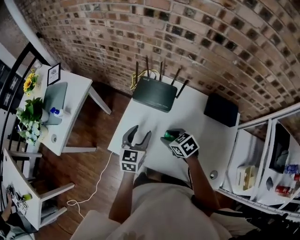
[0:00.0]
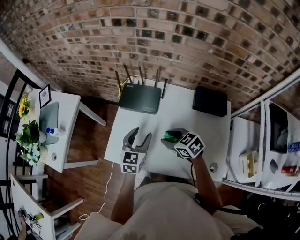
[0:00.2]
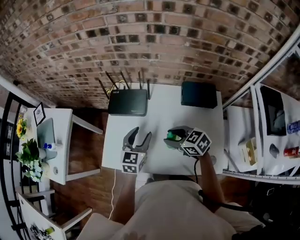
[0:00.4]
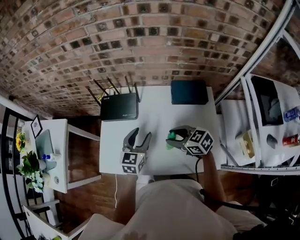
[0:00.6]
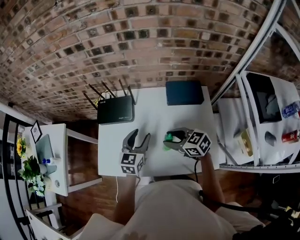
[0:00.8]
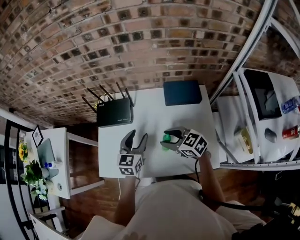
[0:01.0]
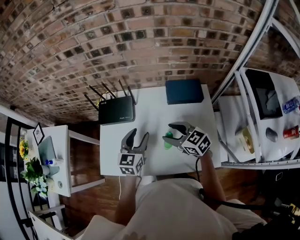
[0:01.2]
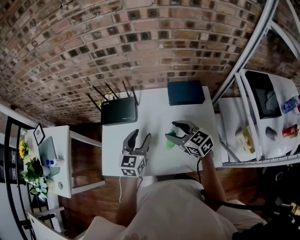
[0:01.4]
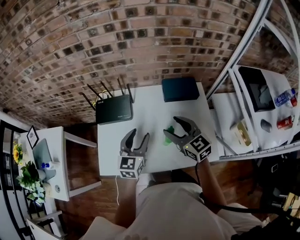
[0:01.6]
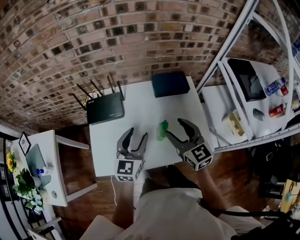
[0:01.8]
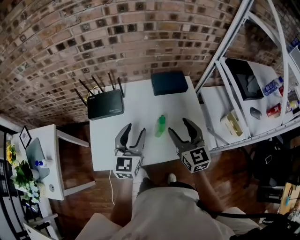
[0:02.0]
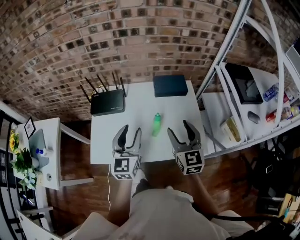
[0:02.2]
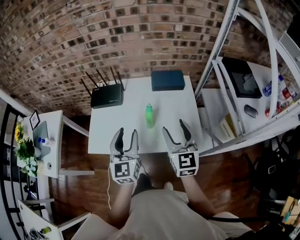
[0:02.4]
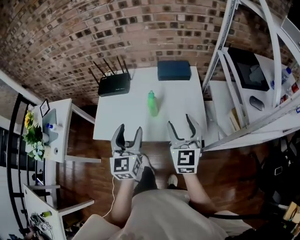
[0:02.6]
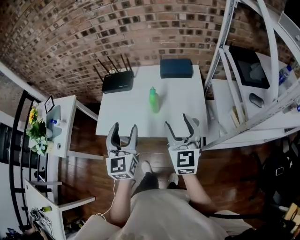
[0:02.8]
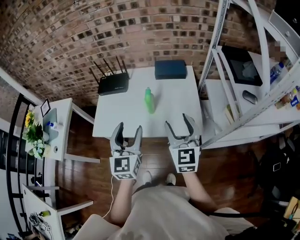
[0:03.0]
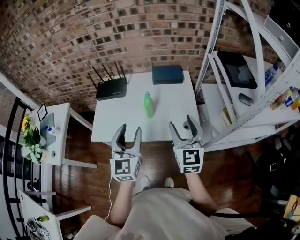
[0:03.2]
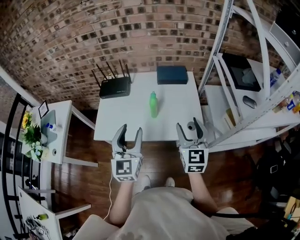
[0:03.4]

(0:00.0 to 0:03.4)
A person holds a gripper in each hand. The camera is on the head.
0:00.0 - 0:01.6: The left gripper ends up some 20 cm from where it was, and rotates about 30 degrees; the right gripper ends up some 25 cm from where it was, and tilts its fingers about 40 degrees upward.
0:01.6 - 0:03.4: The right gripper is displaced backward and to the right by roughly 30 cm, and turns by roughly 30 degrees. The left gripper is displaced backward and upward by some 25 cm, and swivels some 20 degrees.

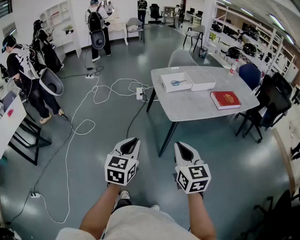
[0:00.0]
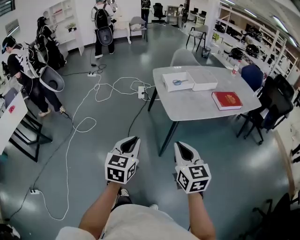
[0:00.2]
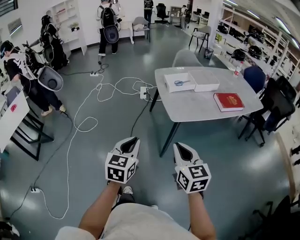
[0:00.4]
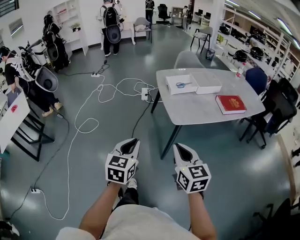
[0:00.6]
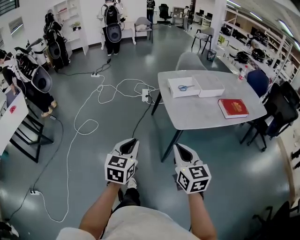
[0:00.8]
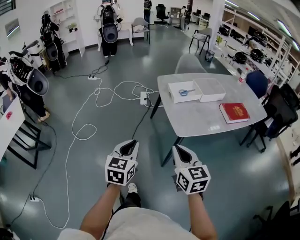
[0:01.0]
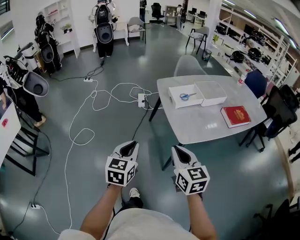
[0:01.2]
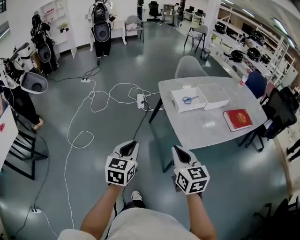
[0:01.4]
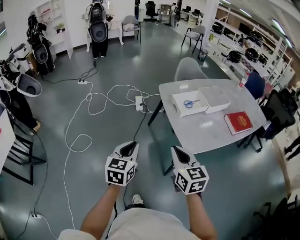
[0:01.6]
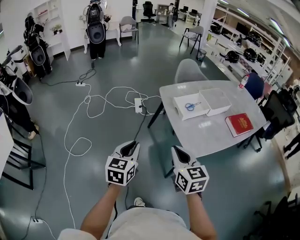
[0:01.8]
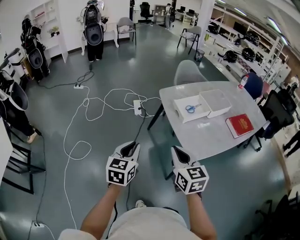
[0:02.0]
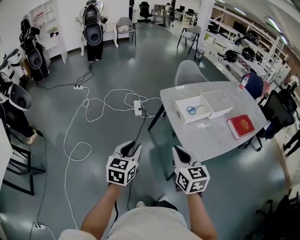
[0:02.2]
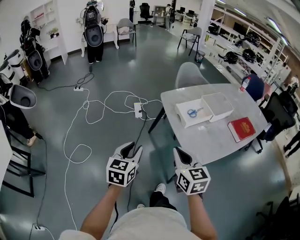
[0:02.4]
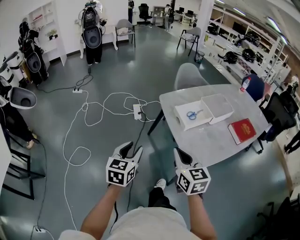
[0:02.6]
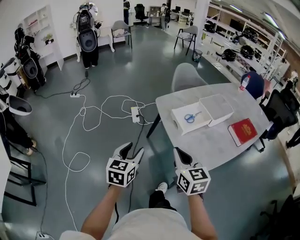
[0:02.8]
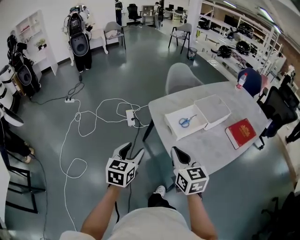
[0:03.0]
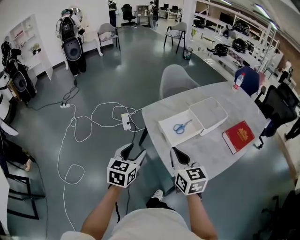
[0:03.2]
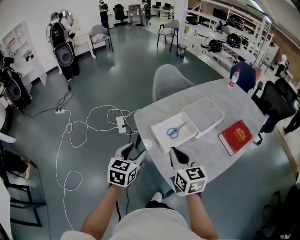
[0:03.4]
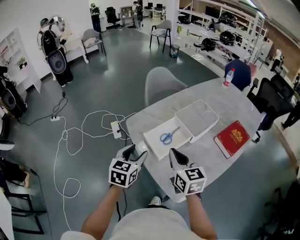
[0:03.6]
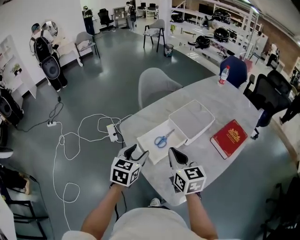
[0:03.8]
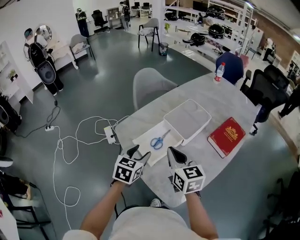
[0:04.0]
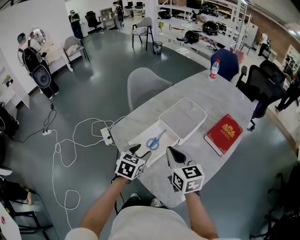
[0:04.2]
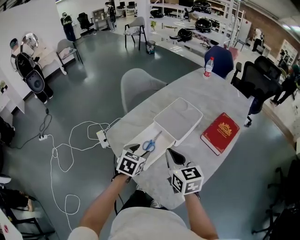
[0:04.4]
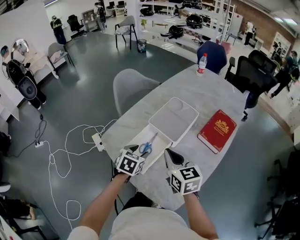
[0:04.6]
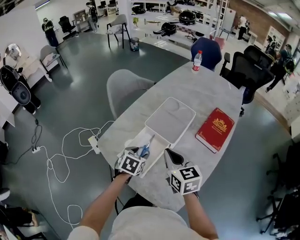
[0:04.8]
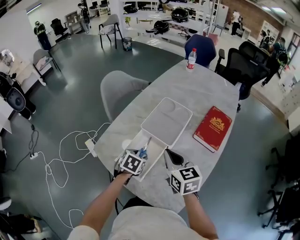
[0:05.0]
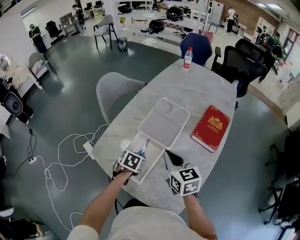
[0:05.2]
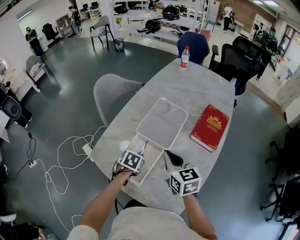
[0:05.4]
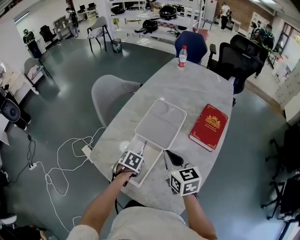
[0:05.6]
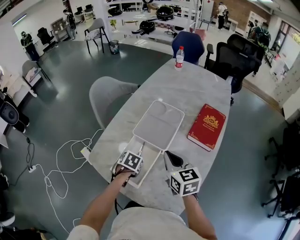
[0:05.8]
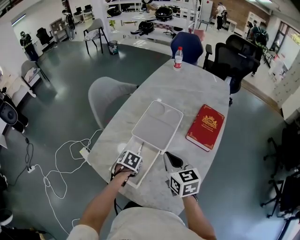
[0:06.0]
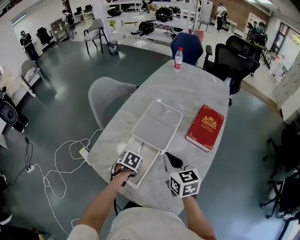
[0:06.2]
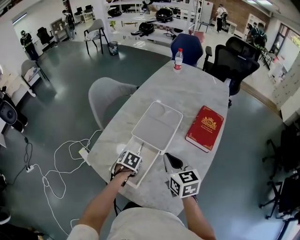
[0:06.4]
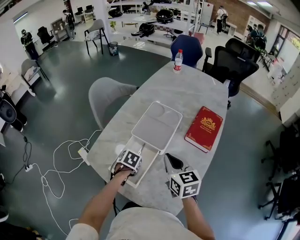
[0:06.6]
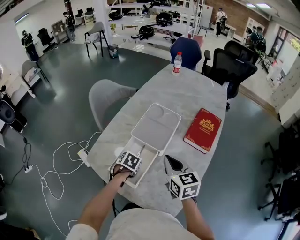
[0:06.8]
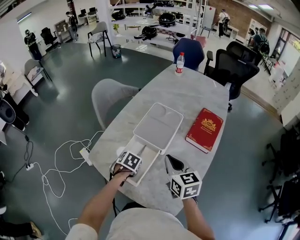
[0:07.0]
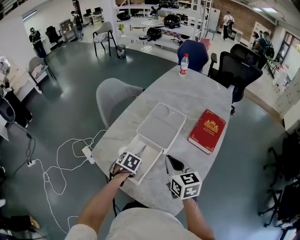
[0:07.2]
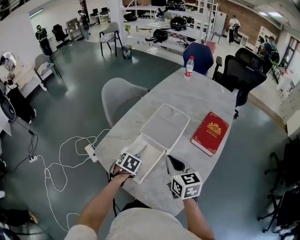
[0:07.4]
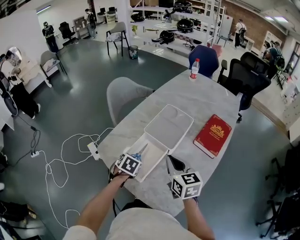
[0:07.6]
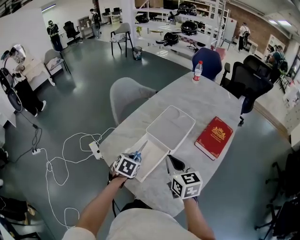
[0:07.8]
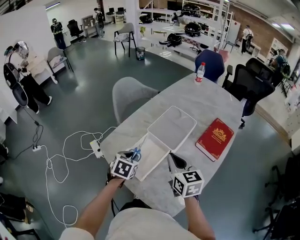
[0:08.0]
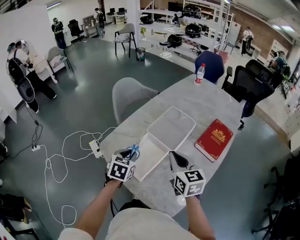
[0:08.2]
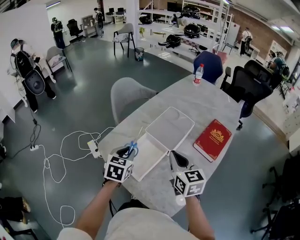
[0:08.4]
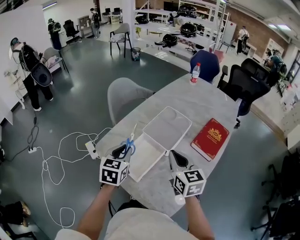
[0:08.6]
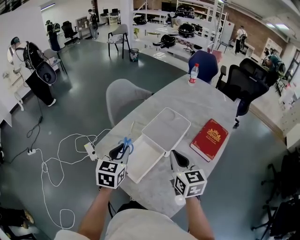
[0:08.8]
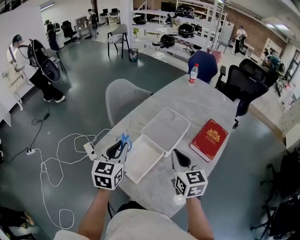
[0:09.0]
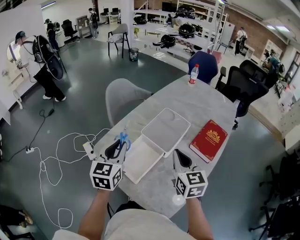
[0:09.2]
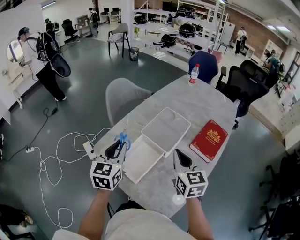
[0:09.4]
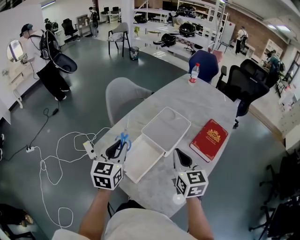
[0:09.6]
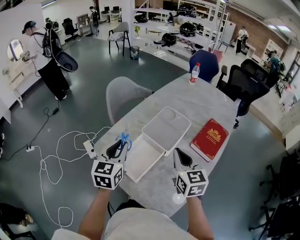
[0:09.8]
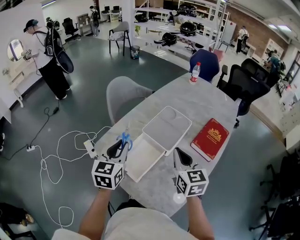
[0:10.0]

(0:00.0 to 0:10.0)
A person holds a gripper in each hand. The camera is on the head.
0:00.0 - 0:01.4: Both grippers move forward and to the left, some 25 cm.
0:01.4 - 0:02.8: Both grippers travel together forward, about 20 cm. The left gripper opens up.
0:02.8 - 0:04.2: The grippers both shift forward and to the right by approximately 35 cm. The left gripper swivels roughly 30 degrees.
0:04.2 - 0:05.8: The left gripper heads downward and forward, covering roughly 15 cm, and tips its fingers downward by about 30 degrees; the right gripper shifts roughly 10 cm forward and to the right.
0:05.8 - 0:07.2: There are only small adjustments of the grippers.
0:07.2 - 0:08.6: The left gripper goes approximately 15 cm upward, and points its fingers roughly 40 degrees further upward.
0:08.6 - 0:10.0: The grippers move only a little.

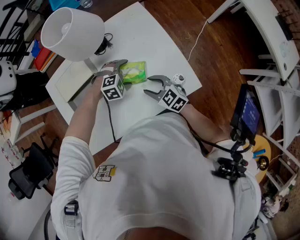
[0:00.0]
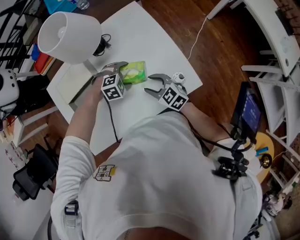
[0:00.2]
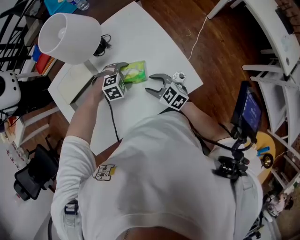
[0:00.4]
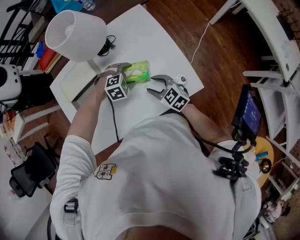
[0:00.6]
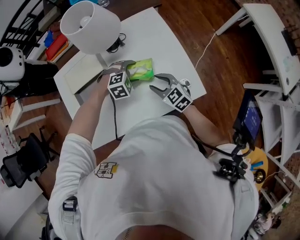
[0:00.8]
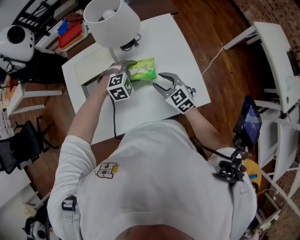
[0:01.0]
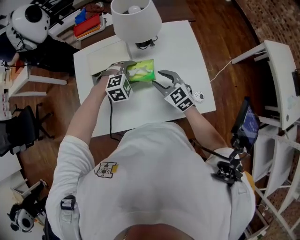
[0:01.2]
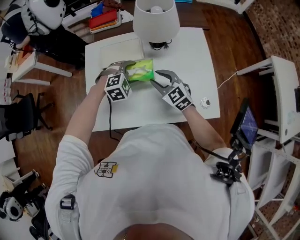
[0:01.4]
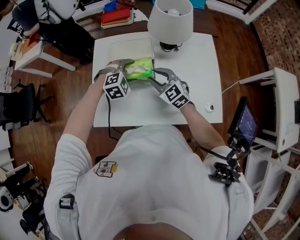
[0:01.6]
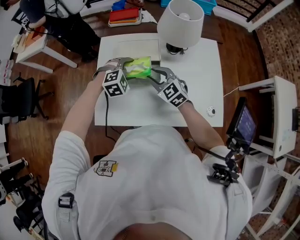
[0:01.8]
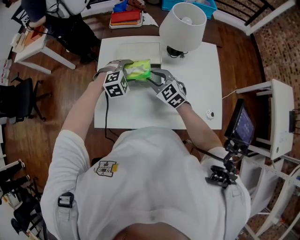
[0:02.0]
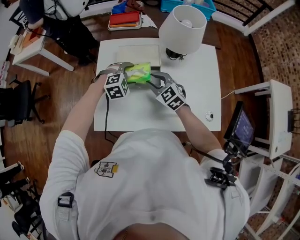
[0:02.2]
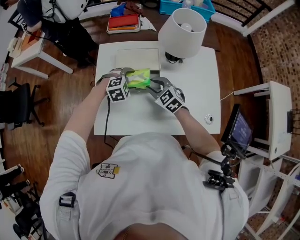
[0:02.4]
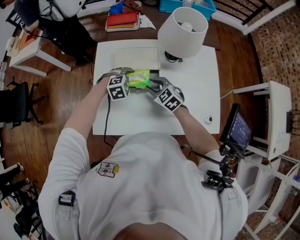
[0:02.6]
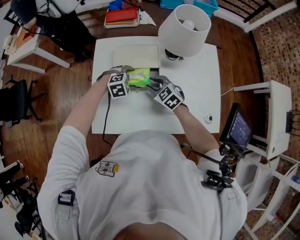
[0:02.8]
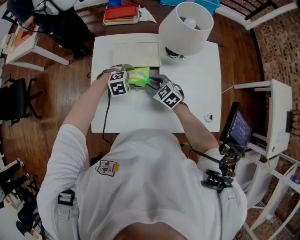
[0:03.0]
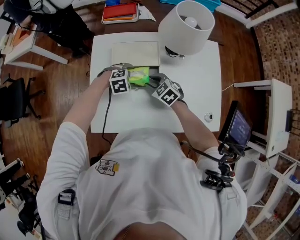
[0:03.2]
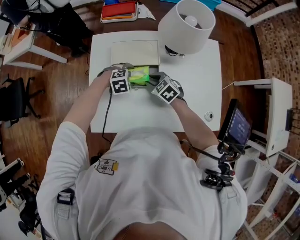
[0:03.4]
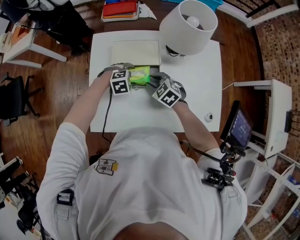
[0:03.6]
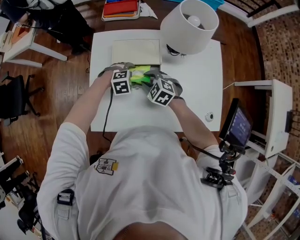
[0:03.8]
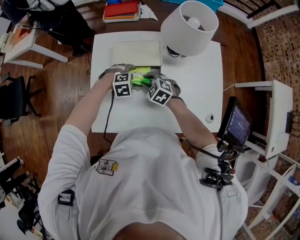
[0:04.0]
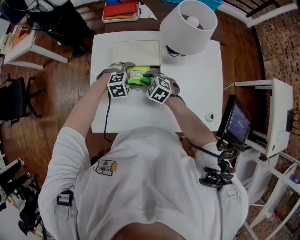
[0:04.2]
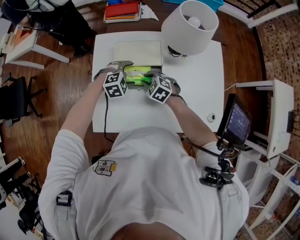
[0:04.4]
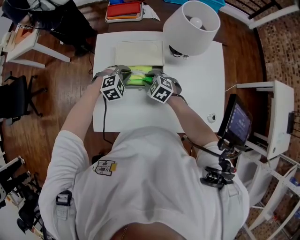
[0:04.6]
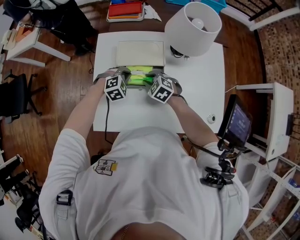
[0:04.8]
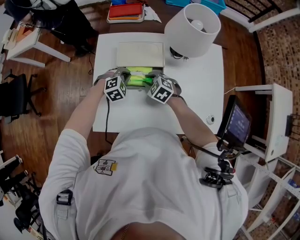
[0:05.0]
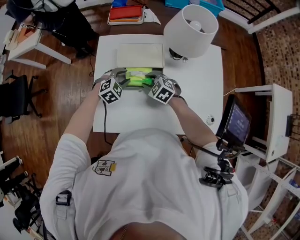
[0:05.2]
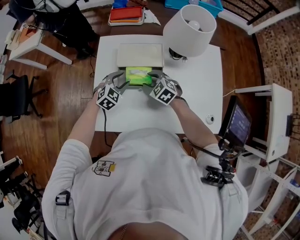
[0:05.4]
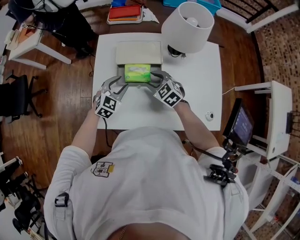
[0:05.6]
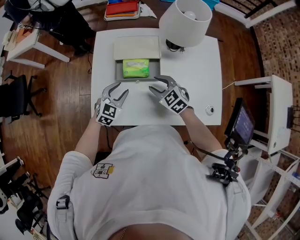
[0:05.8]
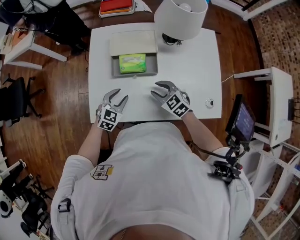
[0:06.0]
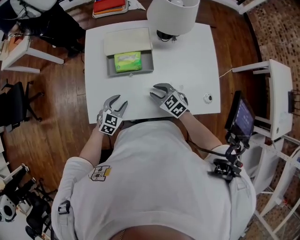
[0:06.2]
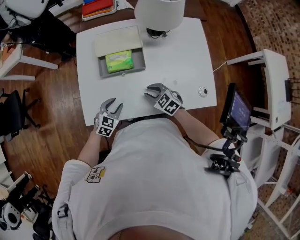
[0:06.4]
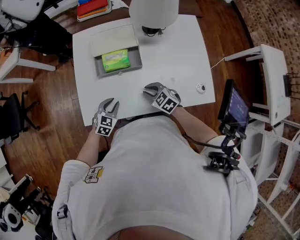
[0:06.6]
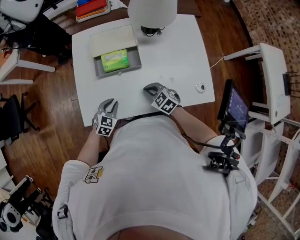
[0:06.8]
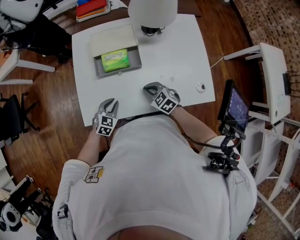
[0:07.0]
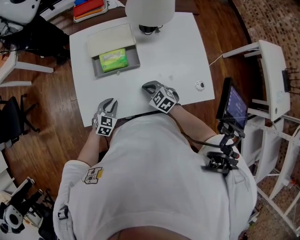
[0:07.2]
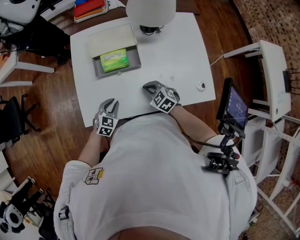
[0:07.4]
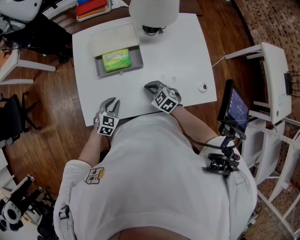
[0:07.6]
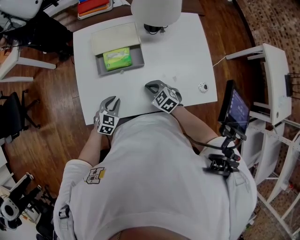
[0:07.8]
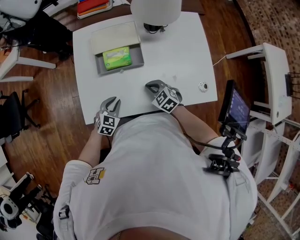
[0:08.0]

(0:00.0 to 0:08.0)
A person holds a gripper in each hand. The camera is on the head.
0:00.0 - 0:01.6: The left gripper moves some 25 cm, and turns by some 30 degrees, while the right gripper shifts by some 25 cm, and rotates about 30 degrees.
0:01.6 - 0:03.2: The grippers both shift downward by approximately 10 cm. The right gripper swivels some 20 degrees.
0:03.2 - 0:04.8: The left gripper closes.
0:04.8 - 0:06.4: Both grippers move backward, some 20 cm. The left gripper changes its angle by approximately 40 degrees, and opens; the right gripper opens and closes again.
0:06.4 - 0:08.0: The right gripper closes up.

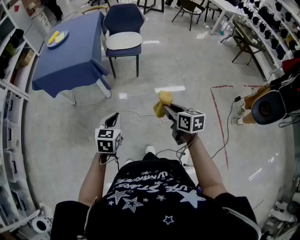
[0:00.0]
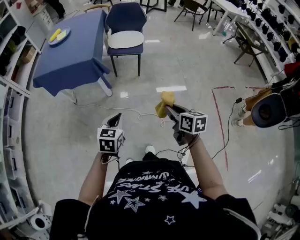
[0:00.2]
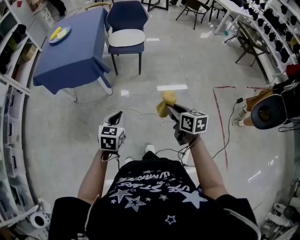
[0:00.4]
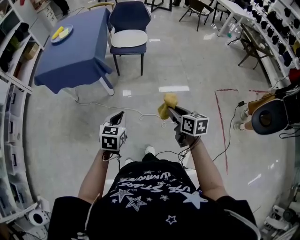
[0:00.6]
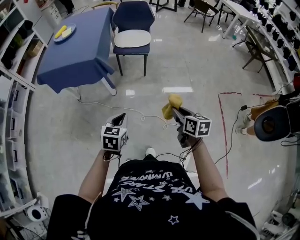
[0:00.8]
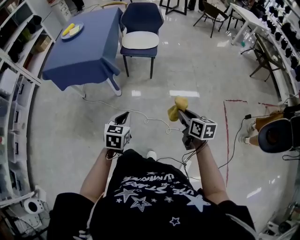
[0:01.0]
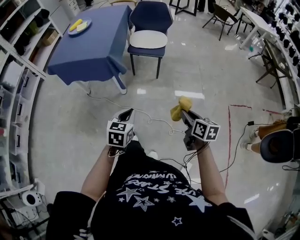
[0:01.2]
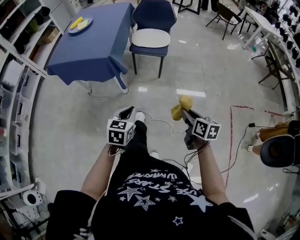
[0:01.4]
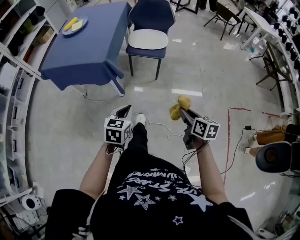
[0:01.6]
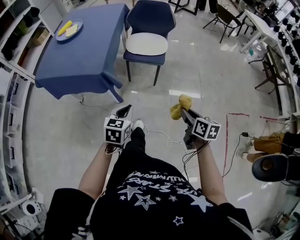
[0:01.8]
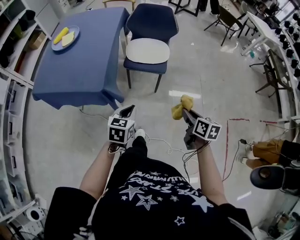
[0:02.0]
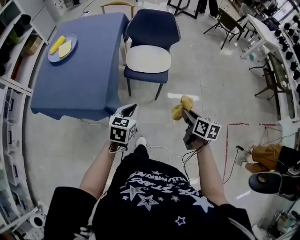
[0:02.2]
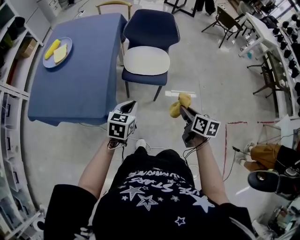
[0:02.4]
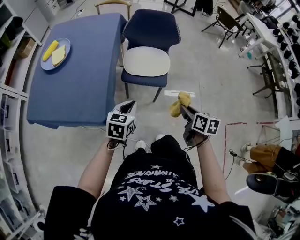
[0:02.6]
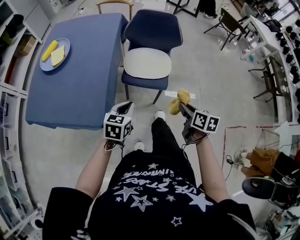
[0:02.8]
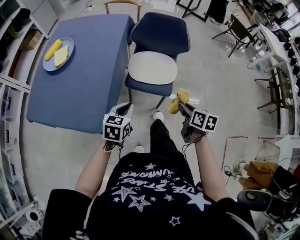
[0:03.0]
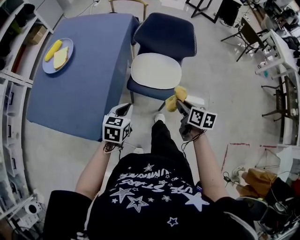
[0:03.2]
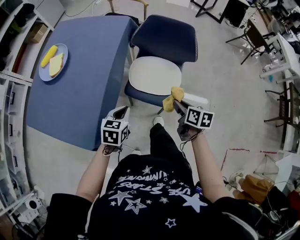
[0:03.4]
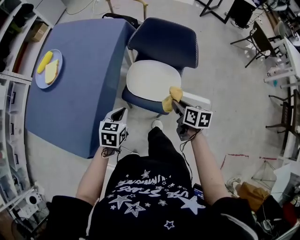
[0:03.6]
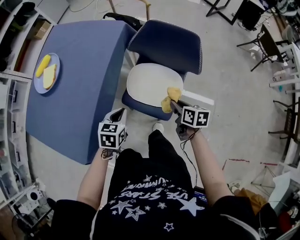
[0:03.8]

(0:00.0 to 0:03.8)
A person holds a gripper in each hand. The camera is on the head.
0:00.0 - 0:01.2: Both grippers move forward and to the right, some 10 cm.
0:01.2 - 0:02.6: Both grippers are carried forward, roughly 50 cm.
0:02.6 - 0:03.8: The right gripper changes place by approximately 40 cm, and changes its angle by roughly 20 degrees, while the left gripper ends up approximately 30 cm from where it was, and rotates approximately 20 degrees.
